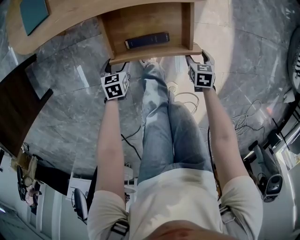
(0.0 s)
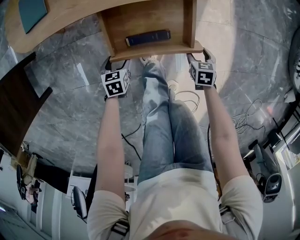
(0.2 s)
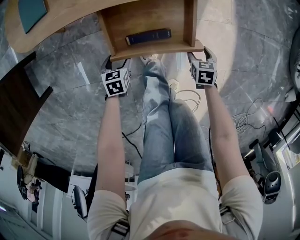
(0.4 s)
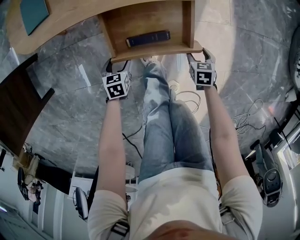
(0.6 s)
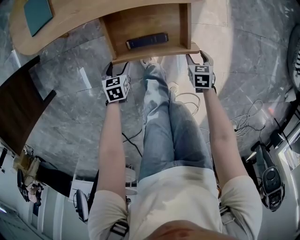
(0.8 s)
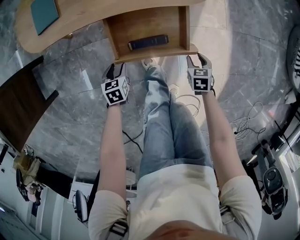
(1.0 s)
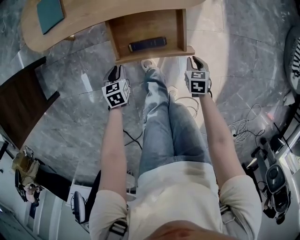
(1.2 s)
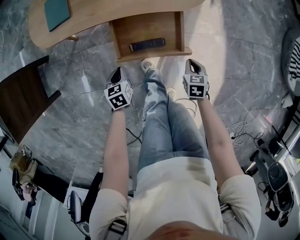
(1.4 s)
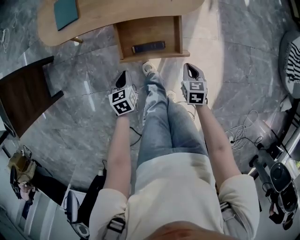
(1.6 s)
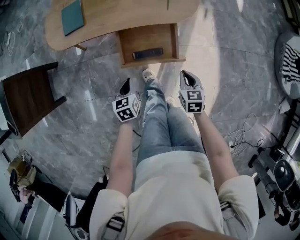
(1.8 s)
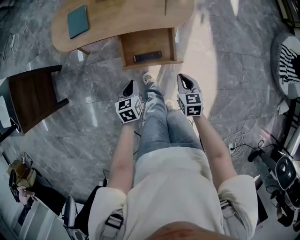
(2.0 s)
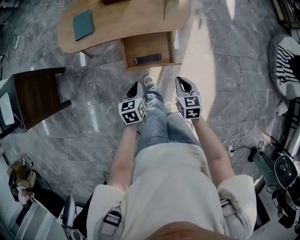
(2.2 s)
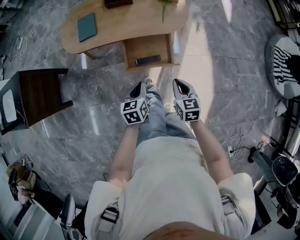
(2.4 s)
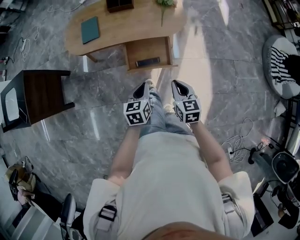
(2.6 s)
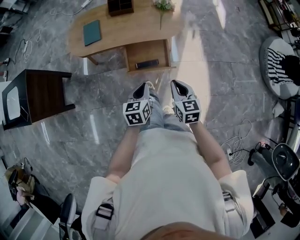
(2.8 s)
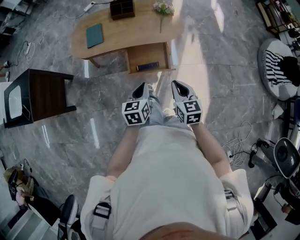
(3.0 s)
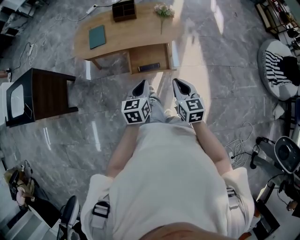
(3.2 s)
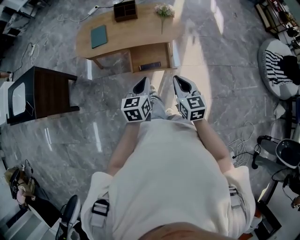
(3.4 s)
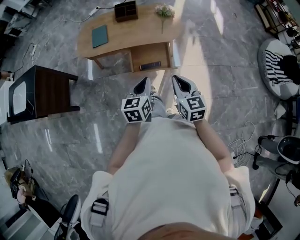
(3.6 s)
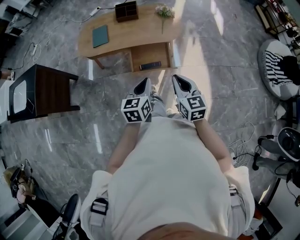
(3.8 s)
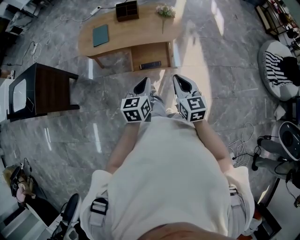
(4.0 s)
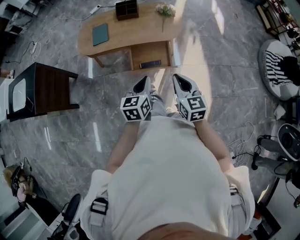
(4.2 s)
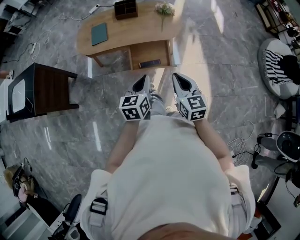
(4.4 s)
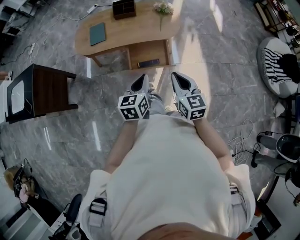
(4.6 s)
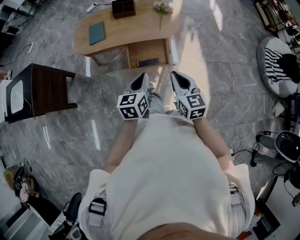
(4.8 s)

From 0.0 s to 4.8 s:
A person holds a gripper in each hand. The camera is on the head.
From 0.0 s to 1.6 s: Both grippers travel together upward, some 20 cm. The left gripper closes. The right gripper closes.
From 1.6 s to 3.2 s: The two grippers go some 35 cm upward. The right gripper swivels about 30 degrees, while the left gripper rotates approximately 20 degrees.
From 3.2 s to 4.8 s: The grippers stay close to where they were, moving slightly.

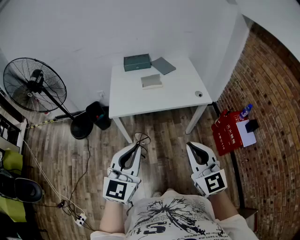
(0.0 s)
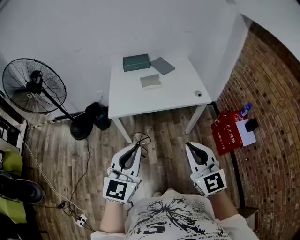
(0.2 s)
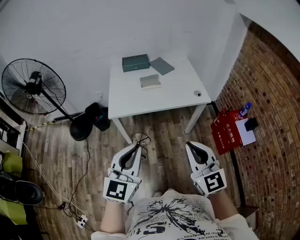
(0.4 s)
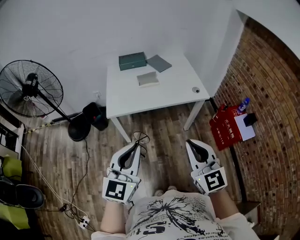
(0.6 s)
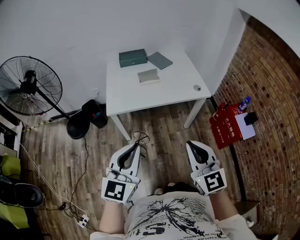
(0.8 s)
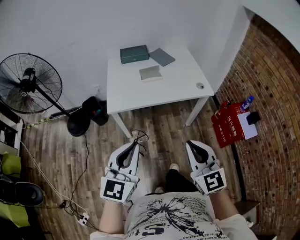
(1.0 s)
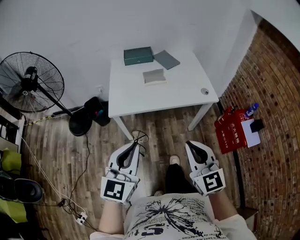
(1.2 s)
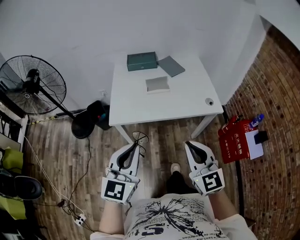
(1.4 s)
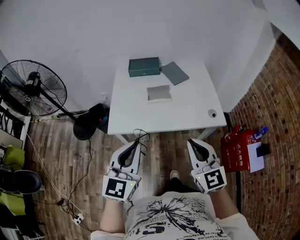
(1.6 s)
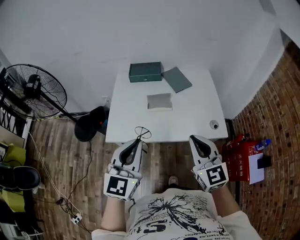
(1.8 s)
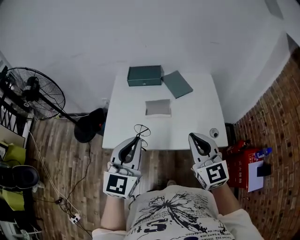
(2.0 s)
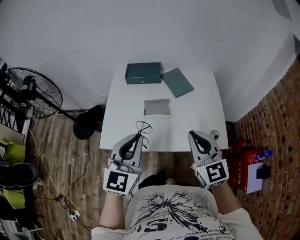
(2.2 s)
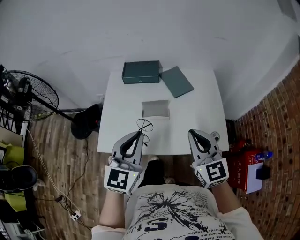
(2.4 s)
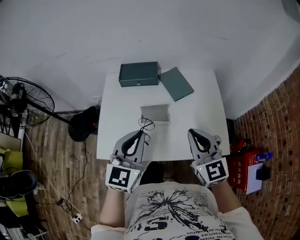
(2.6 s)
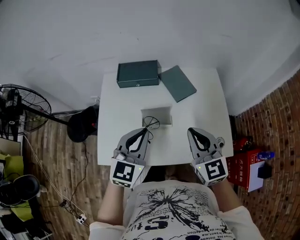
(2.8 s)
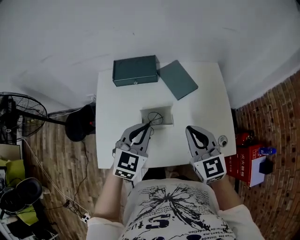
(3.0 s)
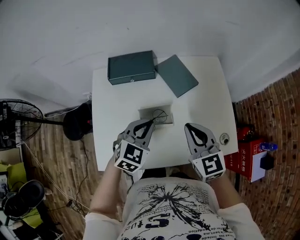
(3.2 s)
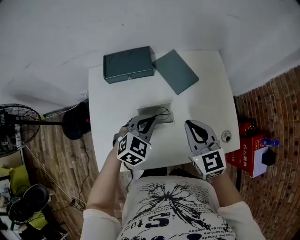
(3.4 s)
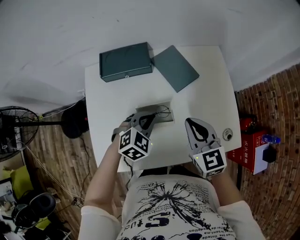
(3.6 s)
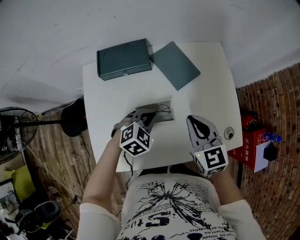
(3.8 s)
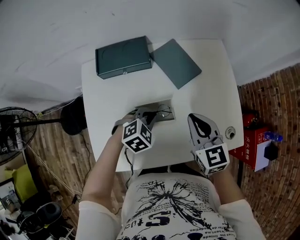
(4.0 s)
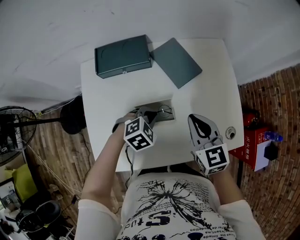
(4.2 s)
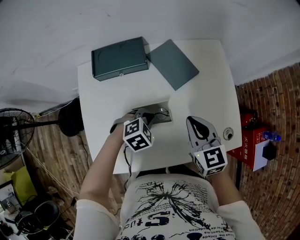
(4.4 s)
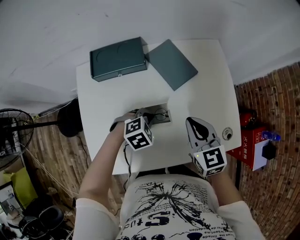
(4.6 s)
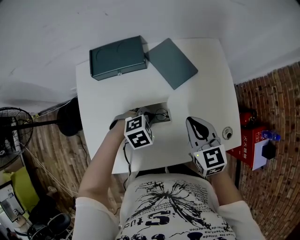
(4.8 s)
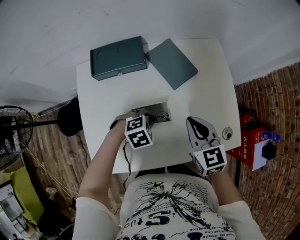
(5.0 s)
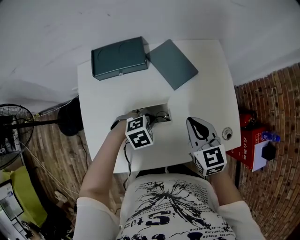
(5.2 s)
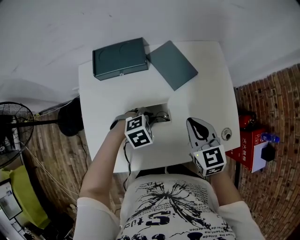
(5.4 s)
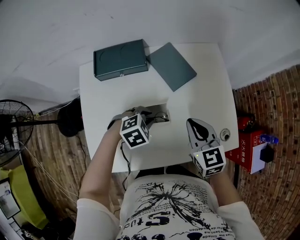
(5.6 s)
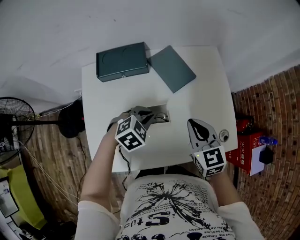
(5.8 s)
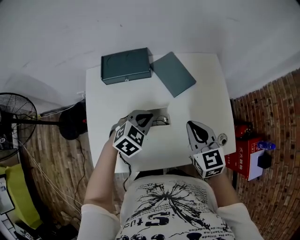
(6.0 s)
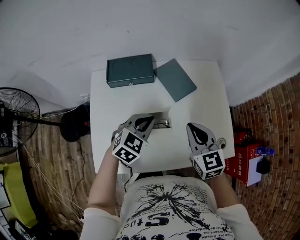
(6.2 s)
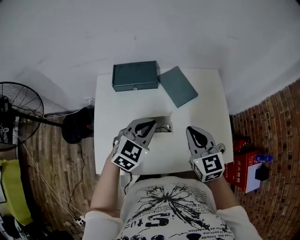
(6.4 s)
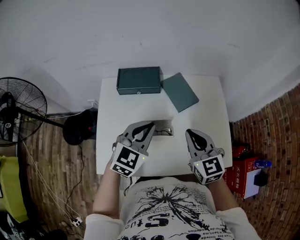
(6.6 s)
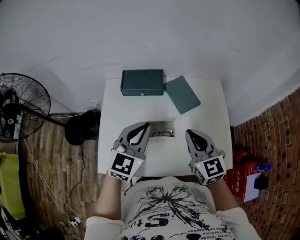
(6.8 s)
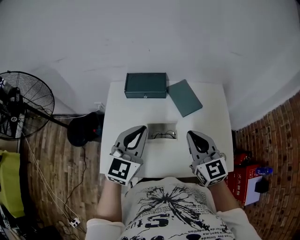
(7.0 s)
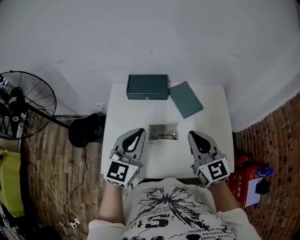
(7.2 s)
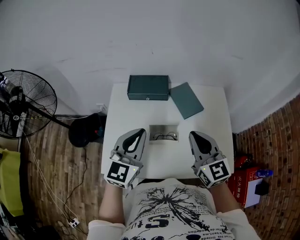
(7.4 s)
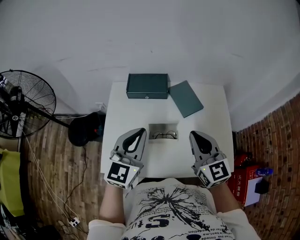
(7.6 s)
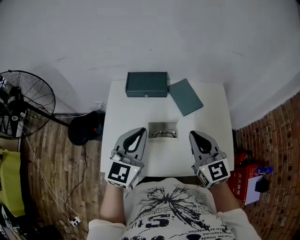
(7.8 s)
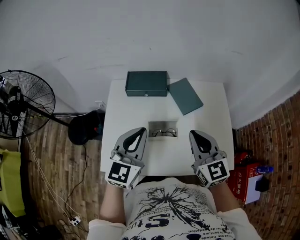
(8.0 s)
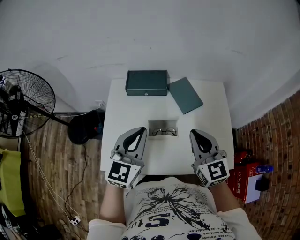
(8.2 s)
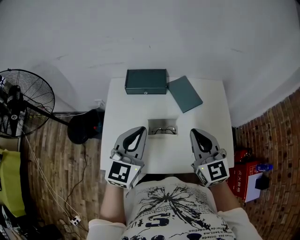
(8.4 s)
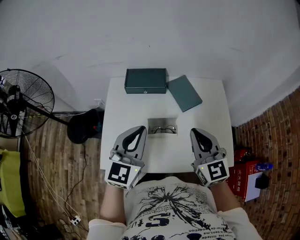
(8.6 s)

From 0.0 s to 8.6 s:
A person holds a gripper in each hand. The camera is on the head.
From 0.0 s to 1.4 s: The two grippers go about 15 cm forward.
From 1.4 s to 2.8 s: The two grippers travel together, forward, some 40 cm.
From 2.8 s to 4.4 s: The left gripper heads downward and forward, covering some 30 cm, and angles its fingers downward, by some 50 degrees. The right gripper goes about 15 cm downward and forward.
From 4.4 s to 5.8 s: The left gripper travels upward by about 5 cm.
From 5.8 s to 7.2 s: The left gripper goes about 25 cm upward, and points its fingers roughly 50 degrees further upward. The right gripper moves upward, roughly 15 cm, and swivels some 20 degrees.
From 7.2 s to 8.6 s: The grippers move only a little.

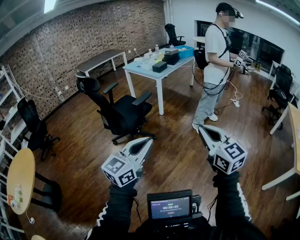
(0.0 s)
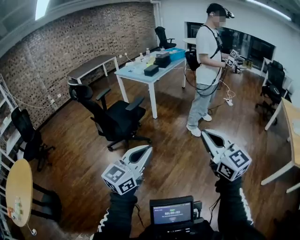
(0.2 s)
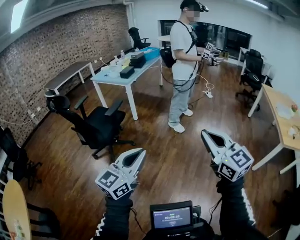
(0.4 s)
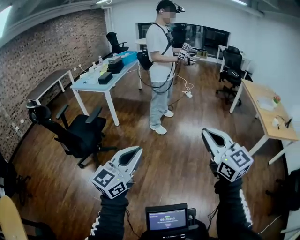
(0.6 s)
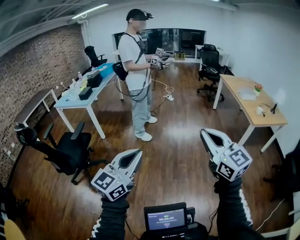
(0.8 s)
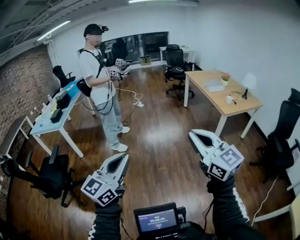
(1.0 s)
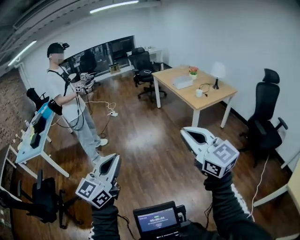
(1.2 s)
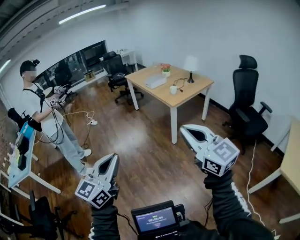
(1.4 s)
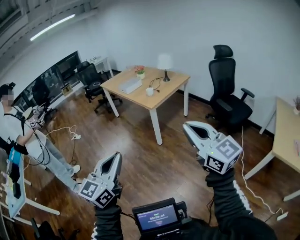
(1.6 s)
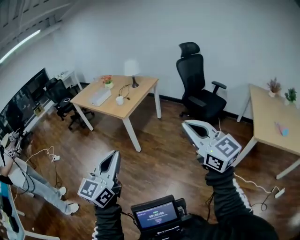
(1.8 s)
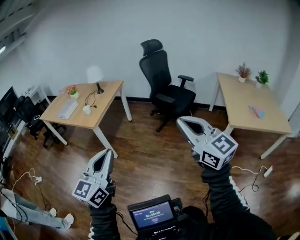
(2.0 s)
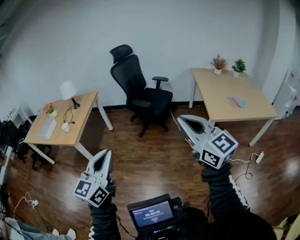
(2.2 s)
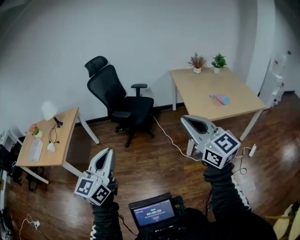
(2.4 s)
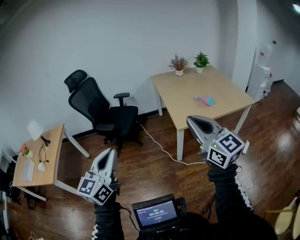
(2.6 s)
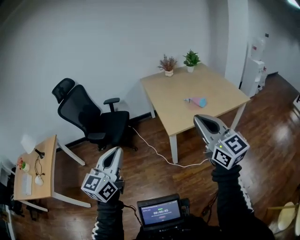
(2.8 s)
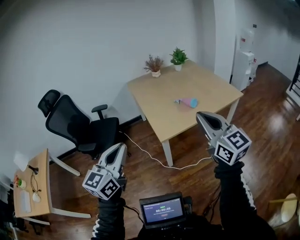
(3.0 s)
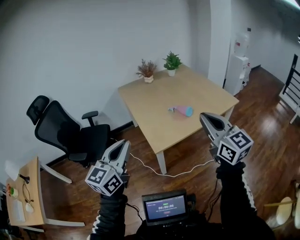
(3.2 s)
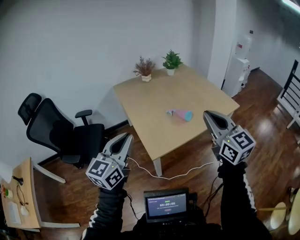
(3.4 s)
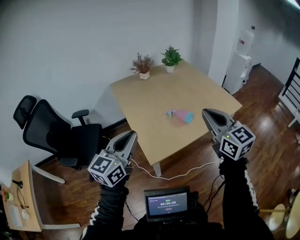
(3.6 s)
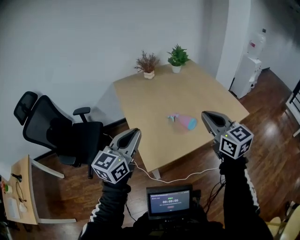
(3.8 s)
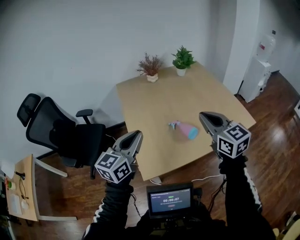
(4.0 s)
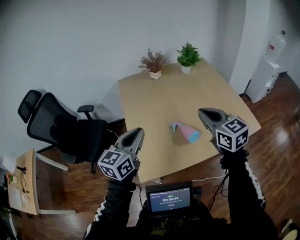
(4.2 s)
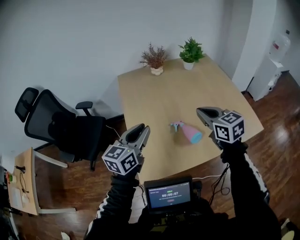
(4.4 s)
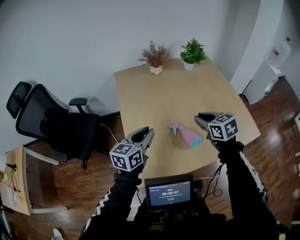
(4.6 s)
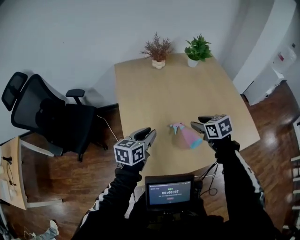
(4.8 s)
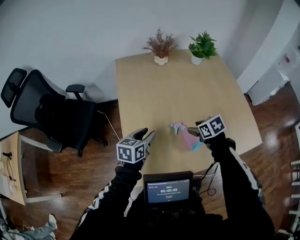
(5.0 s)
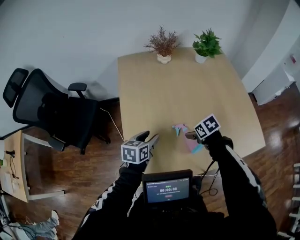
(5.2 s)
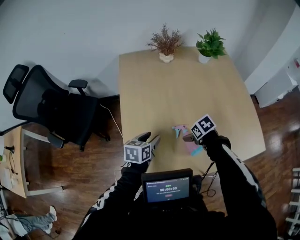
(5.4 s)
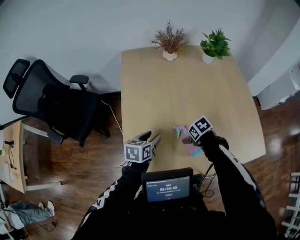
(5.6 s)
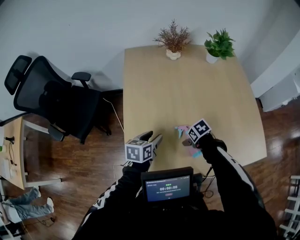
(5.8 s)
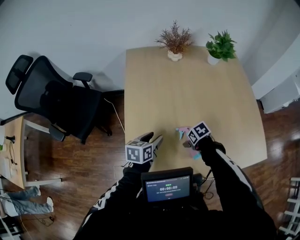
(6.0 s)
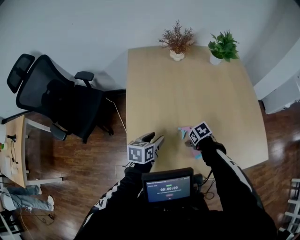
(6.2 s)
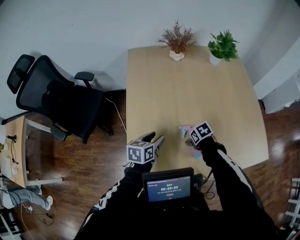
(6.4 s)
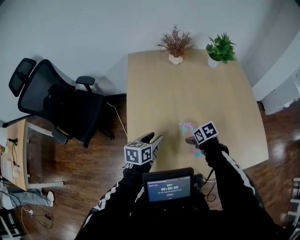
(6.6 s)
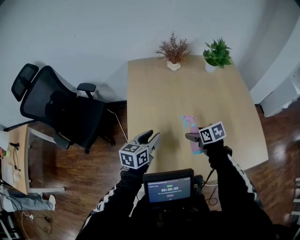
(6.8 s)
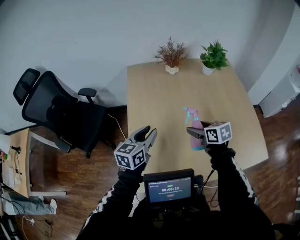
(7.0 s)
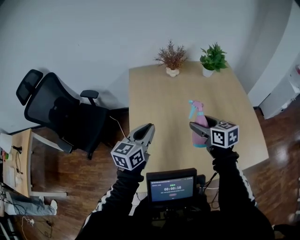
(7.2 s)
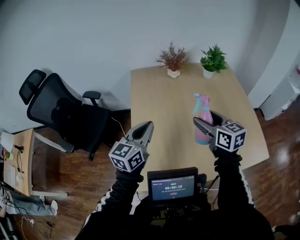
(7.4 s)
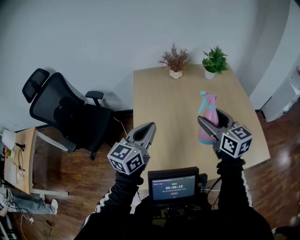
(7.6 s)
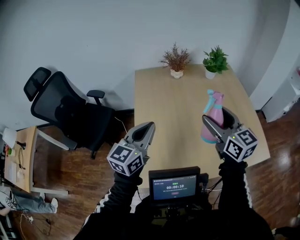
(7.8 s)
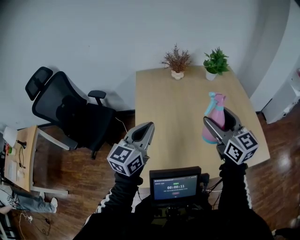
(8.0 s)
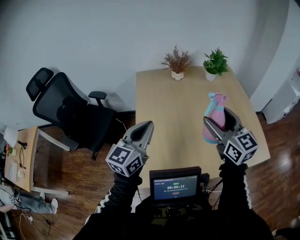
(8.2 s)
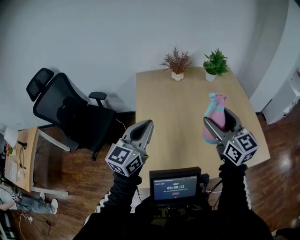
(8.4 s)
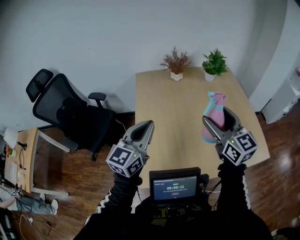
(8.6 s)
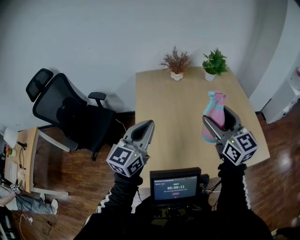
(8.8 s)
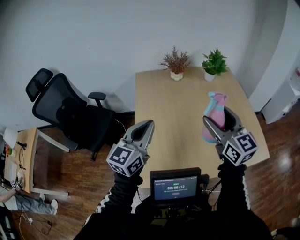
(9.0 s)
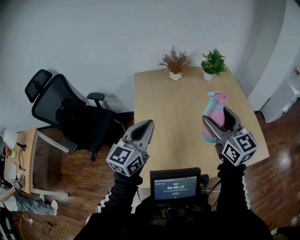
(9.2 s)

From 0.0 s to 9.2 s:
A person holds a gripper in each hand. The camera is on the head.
From 0.0 s to 1.6 s: The pair of grippers is taken about 1 m. The right gripper turns by approximately 70 degrees; the left gripper changes its angle by approximately 70 degrees.
From 1.6 s to 3.0 s: The two grippers travel together, about 1 m. The right gripper changes its angle by about 80 degrees, while the left gripper swivels some 70 degrees.
From 3.0 s to 4.6 s: The two grippers travel together, forward, approximately 1 m. The right gripper tips its fingers downward by roughly 40 degrees. Meanwhile the left gripper rotates roughly 20 degrees.
From 4.6 s to 6.2 s: The right gripper travels downward by roughly 30 cm, tips its fingers downward by some 40 degrees, and opens. The left gripper shifts roughly 20 cm downward, turns by roughly 30 degrees, and opens its fingers.
From 6.2 s to 7.6 s: The left gripper heads upward, covering some 30 cm, tilts its fingers approximately 30 degrees upward, and closes. Meanwhile the right gripper goes approximately 40 cm upward, and tips its fingers upward by roughly 70 degrees.
From 7.6 s to 9.2 s: The left gripper ends up roughly 5 cm from where it was; the right gripper goes roughly 10 cm upward and backward.

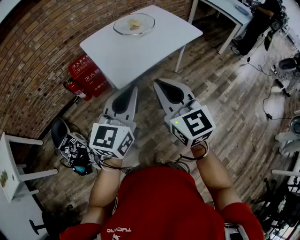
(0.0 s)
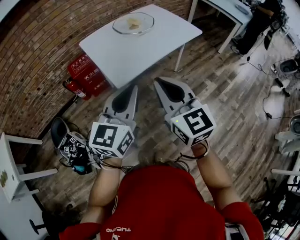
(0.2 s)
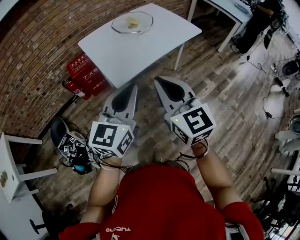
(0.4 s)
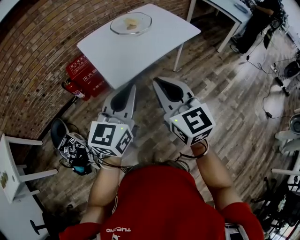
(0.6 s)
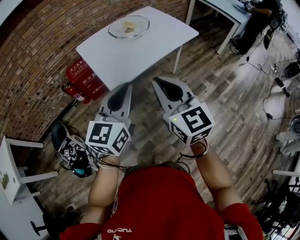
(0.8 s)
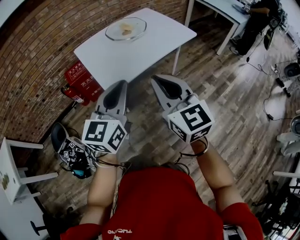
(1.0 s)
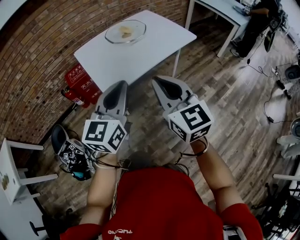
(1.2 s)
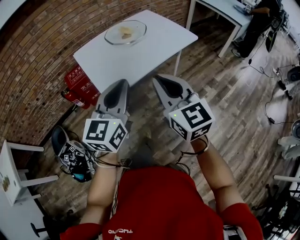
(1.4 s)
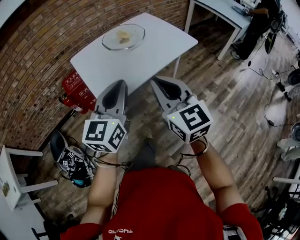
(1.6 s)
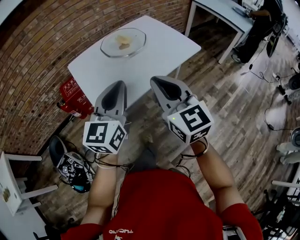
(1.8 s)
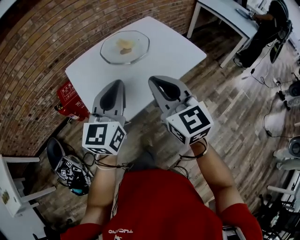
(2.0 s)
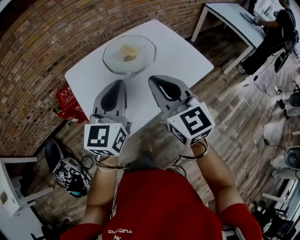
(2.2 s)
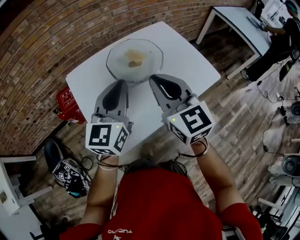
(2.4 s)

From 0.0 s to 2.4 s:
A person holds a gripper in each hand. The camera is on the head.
From 0.0 s to 1.2 s: The left gripper heads forward, covering roughly 5 cm, while the right gripper moves to the right, some 5 cm.
From 1.2 s to 2.4 s: The two grippers go roughly 40 cm forward.
